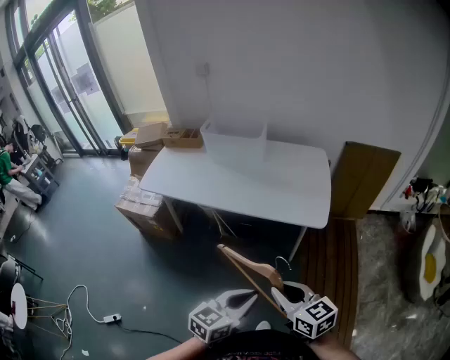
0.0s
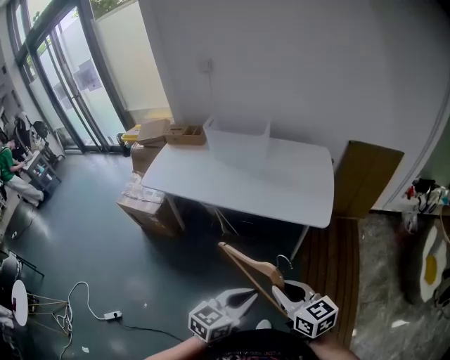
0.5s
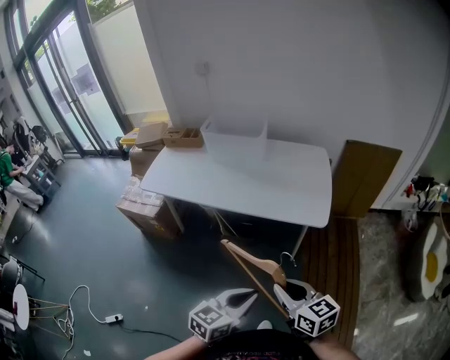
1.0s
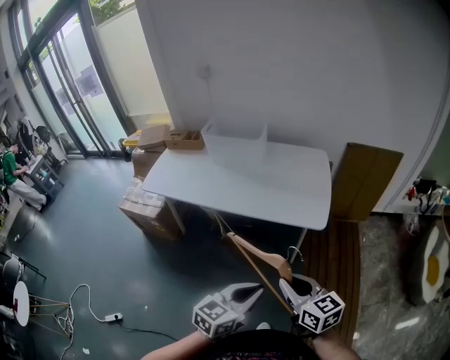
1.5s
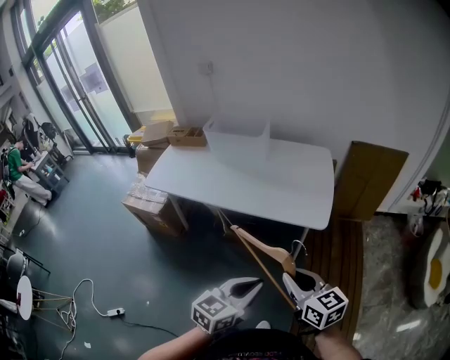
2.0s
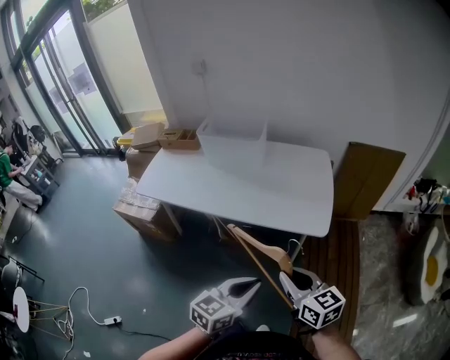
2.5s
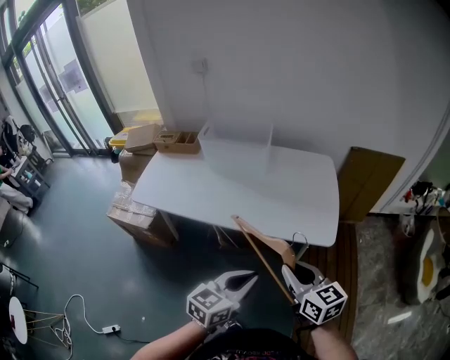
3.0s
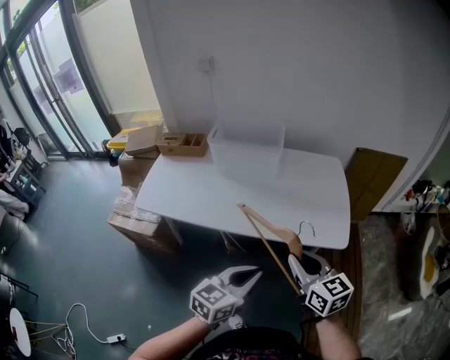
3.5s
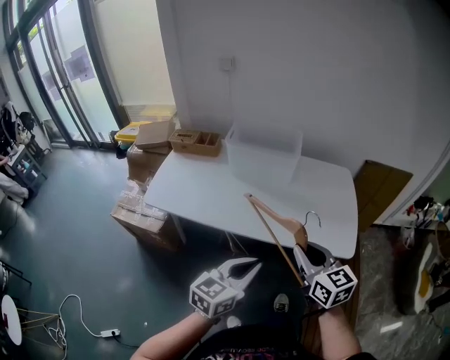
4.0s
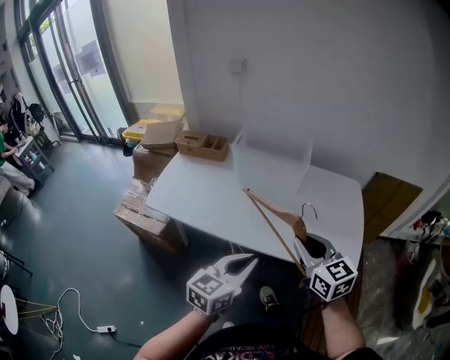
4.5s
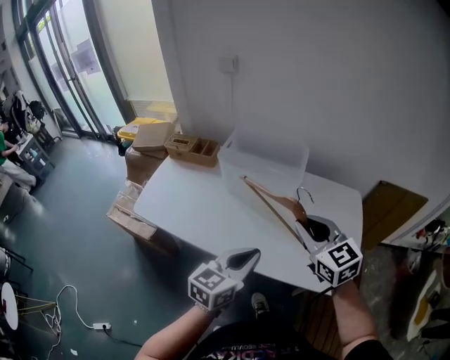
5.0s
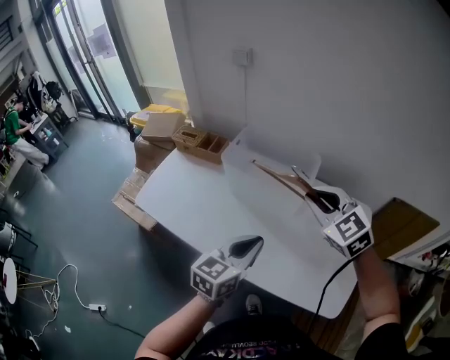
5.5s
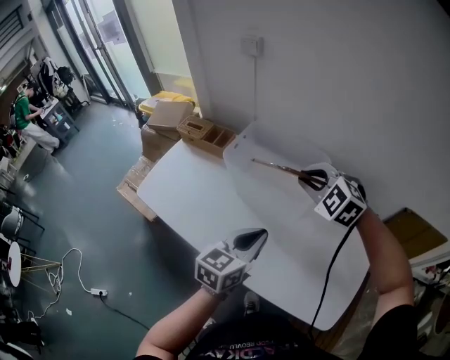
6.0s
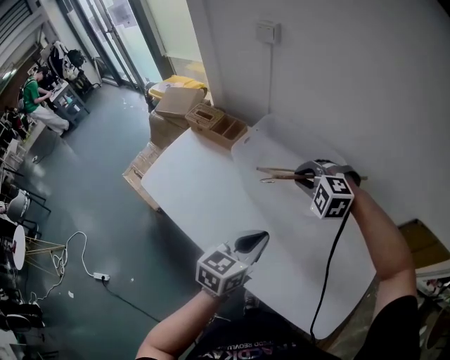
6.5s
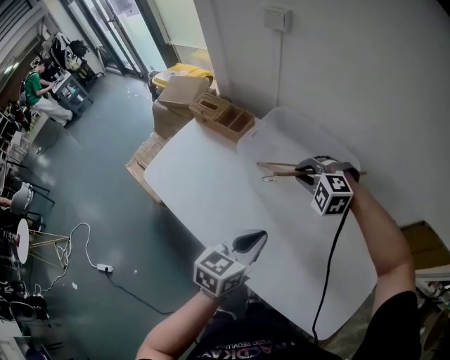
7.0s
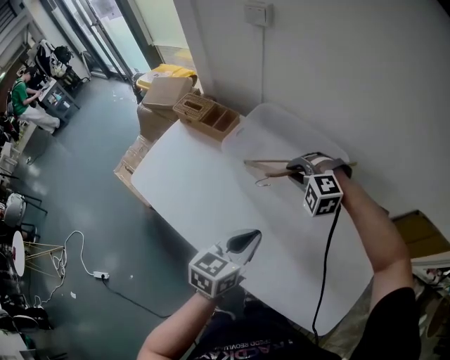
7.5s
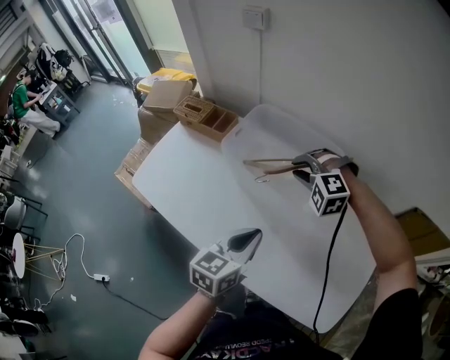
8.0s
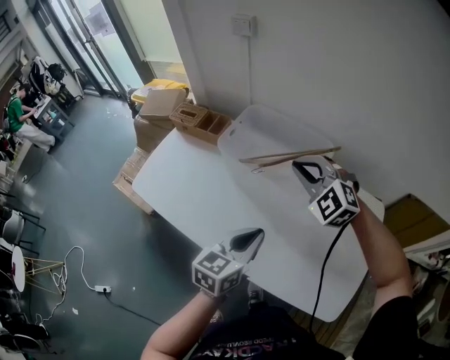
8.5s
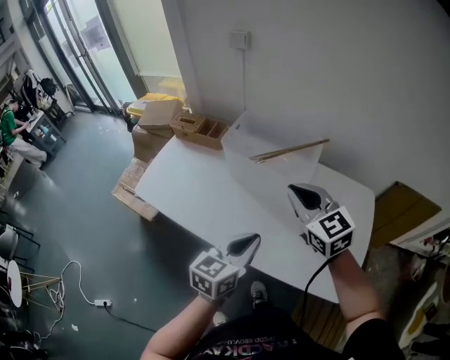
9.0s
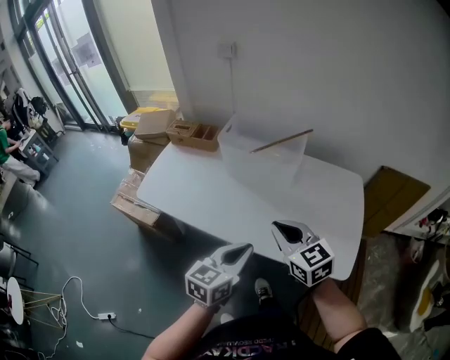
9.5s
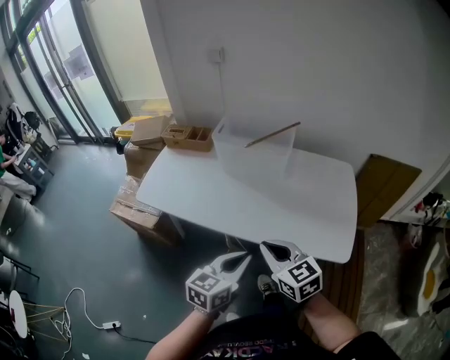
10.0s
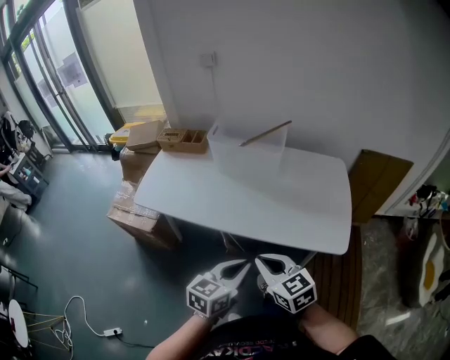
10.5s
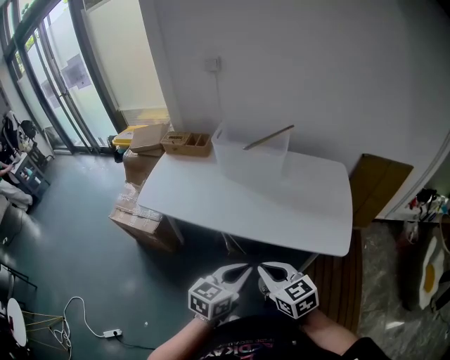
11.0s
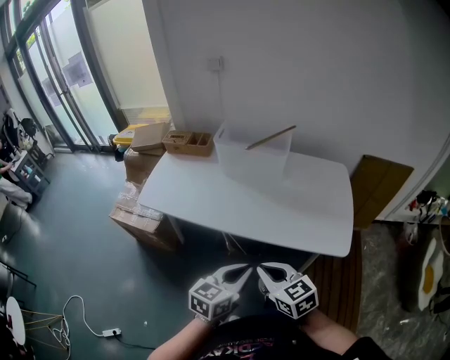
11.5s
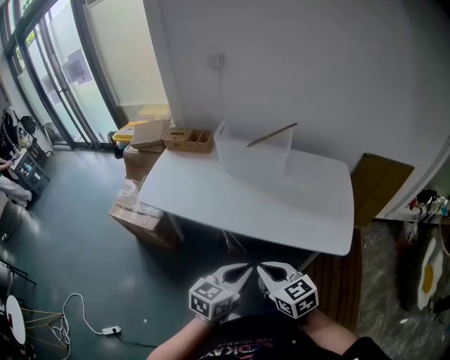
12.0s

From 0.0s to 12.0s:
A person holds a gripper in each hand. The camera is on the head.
From 0.0s to 2.0s: The right gripper goes approximately 5 cm to the right. The left gripper changes place by about 5 cm.
From 2.0s to 4.0s: Both grippers move to the left and forward, about 35 cm.
From 4.0s to 6.0s: Both grippers move forward, some 40 cm. The left gripper turns by some 20 degrees. Meanwhile the right gripper rotates around the line of its fingers by some 60 degrees, counterclockwise from behind.
From 6.0s to 8.0s: The right gripper travels downward and forward by some 15 cm, and swivels roughly 30 degrees. Meanwhile the left gripper goes approximately 5 cm downward.
From 8.0s to 10.0s: The right gripper moves backward, about 50 cm, twists about 80 degrees clockwise, seen from behind, and closes up, while the left gripper shifts roughly 35 cm backward.
From 10.0s to 12.0s: The two grippers go approximately 10 cm backward.

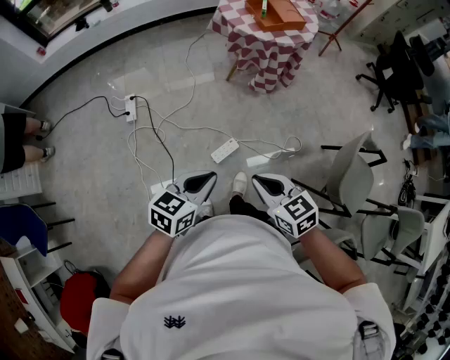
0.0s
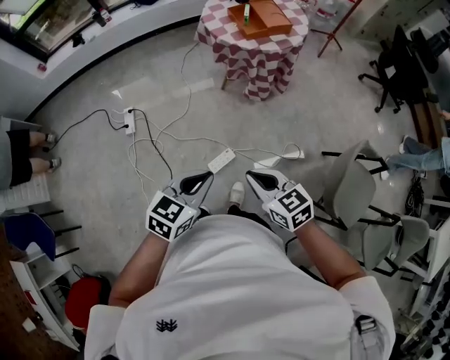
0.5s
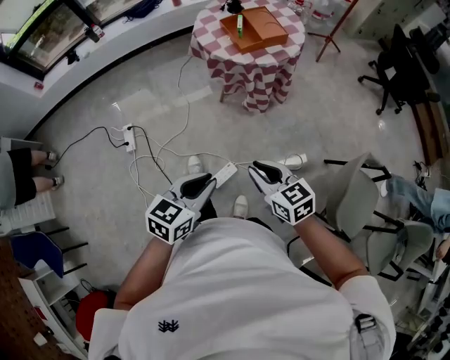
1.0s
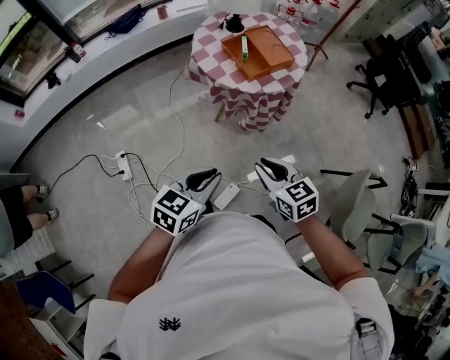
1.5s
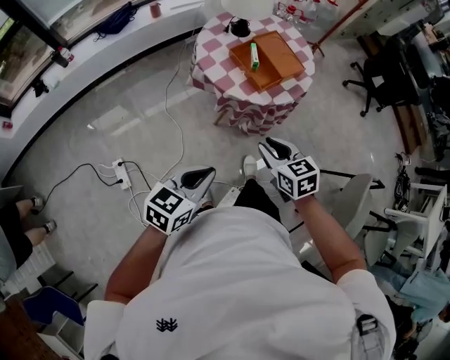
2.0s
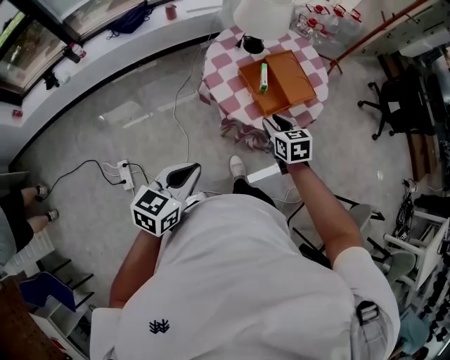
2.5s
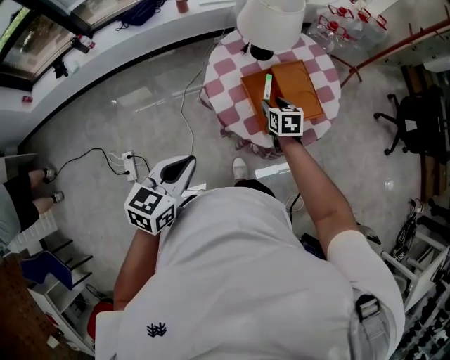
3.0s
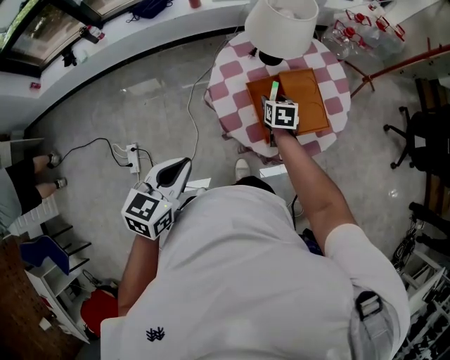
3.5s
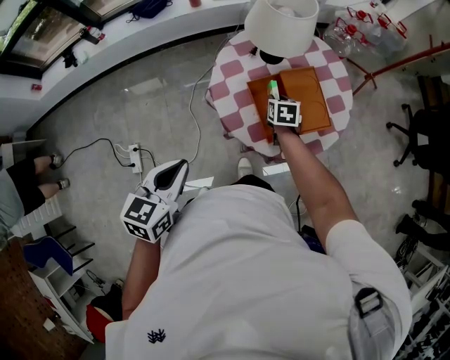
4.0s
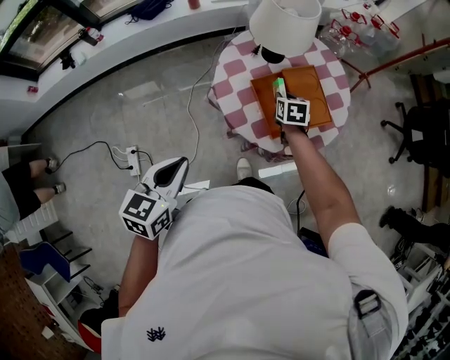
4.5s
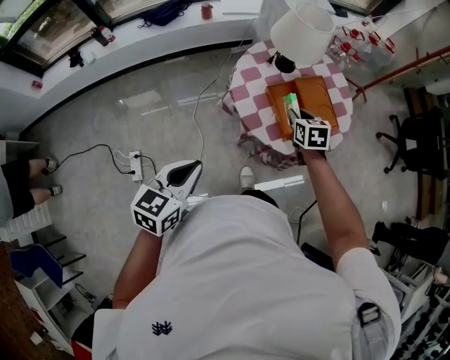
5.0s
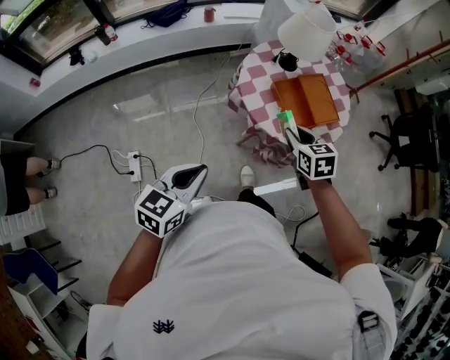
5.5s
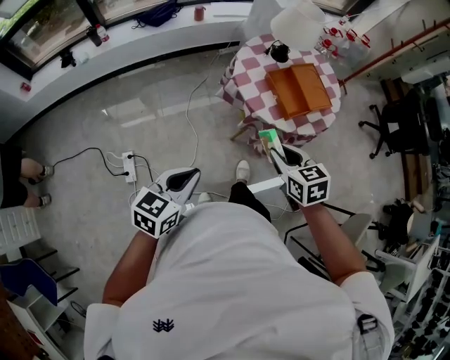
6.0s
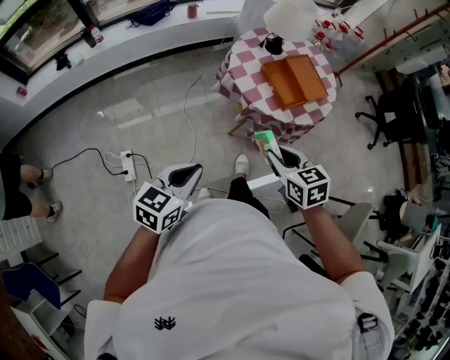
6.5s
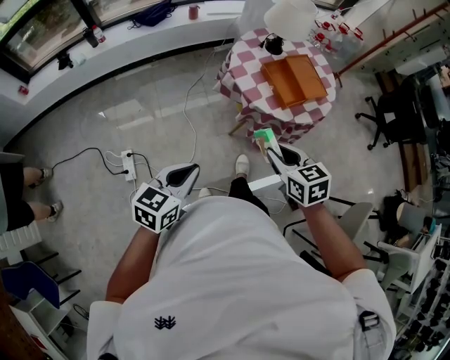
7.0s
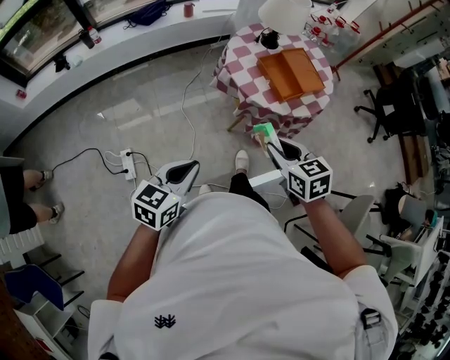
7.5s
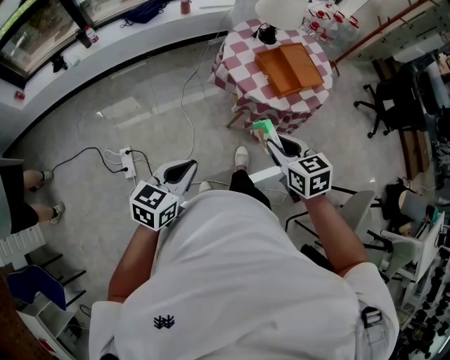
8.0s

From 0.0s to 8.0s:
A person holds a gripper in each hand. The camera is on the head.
From 0.0s to 2.0s: Both grippers are carried forward, approximately 50 cm. The right gripper changes its angle by about 20 degrees.
From 2.0s to 4.0s: The left gripper moves forward, approximately 20 cm, and turns by approximately 30 degrees. The right gripper shifts some 50 cm forward and downward, and opens, then closes once more.
From 4.0s to 6.0s: The right gripper goes roughly 40 cm backward and upward. The left gripper is displaced backward and to the left by roughly 25 cm.
From 6.0s to 8.0s: The right gripper is displaced backward by approximately 5 cm.

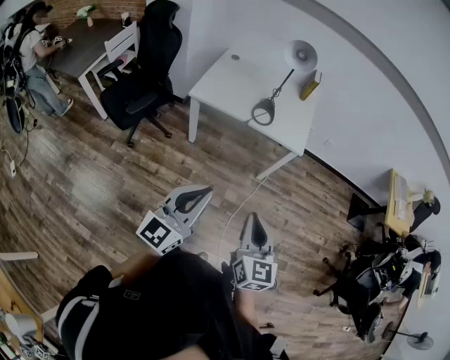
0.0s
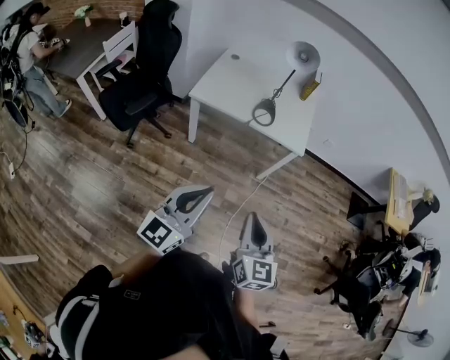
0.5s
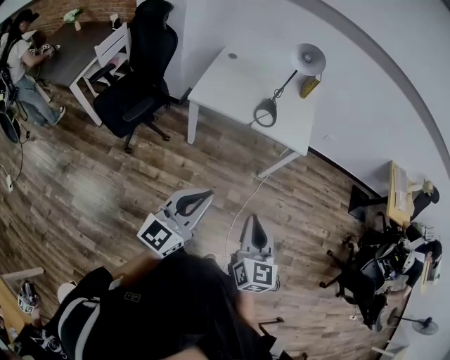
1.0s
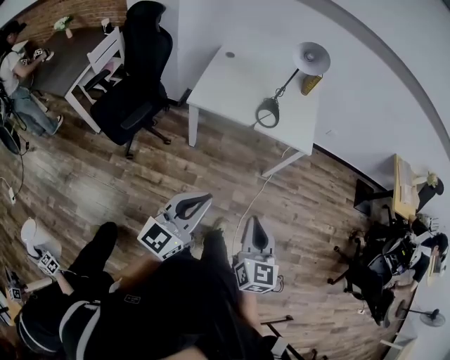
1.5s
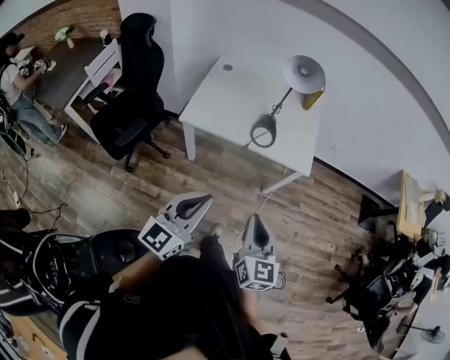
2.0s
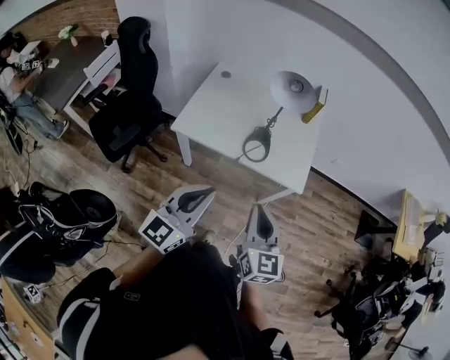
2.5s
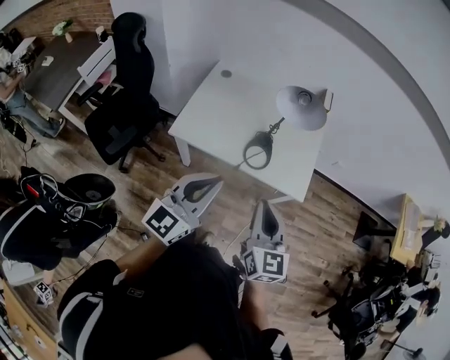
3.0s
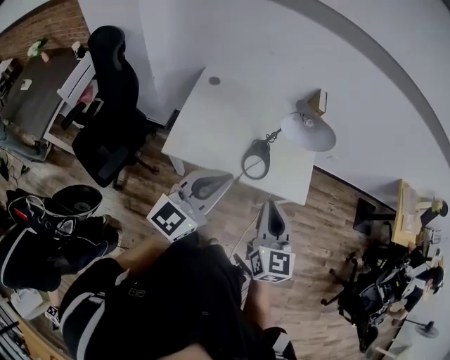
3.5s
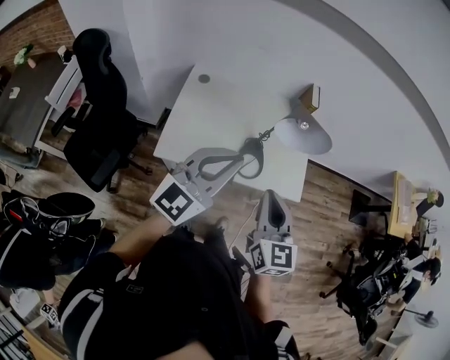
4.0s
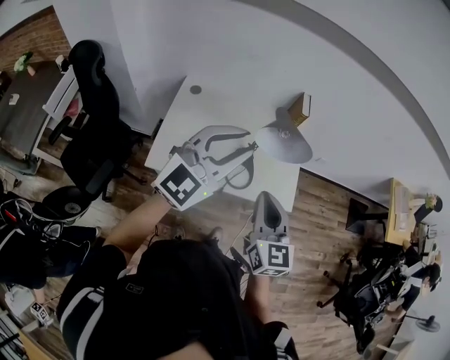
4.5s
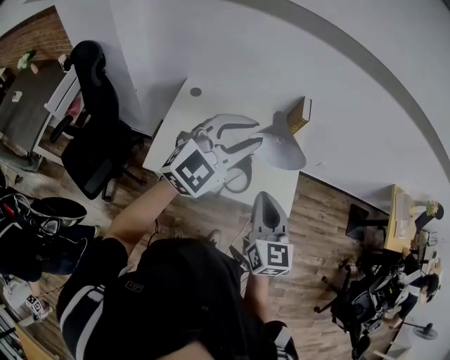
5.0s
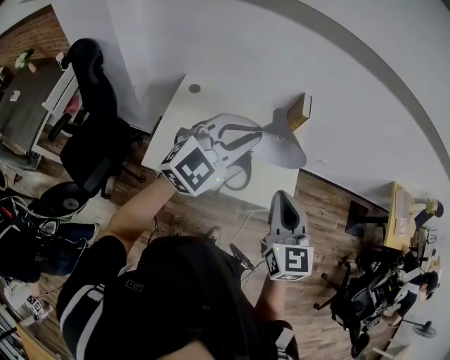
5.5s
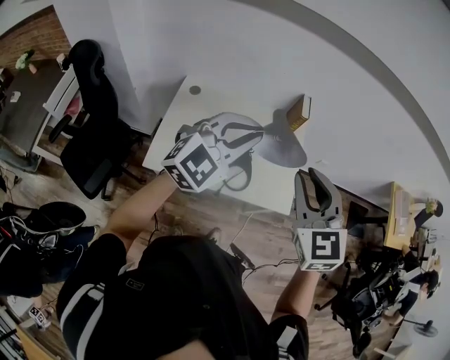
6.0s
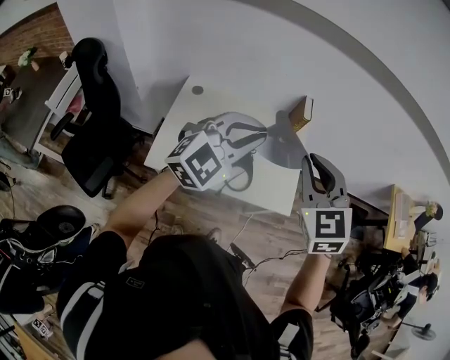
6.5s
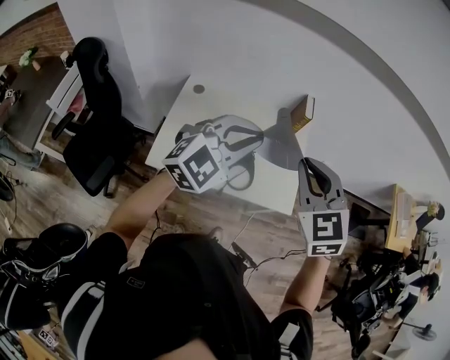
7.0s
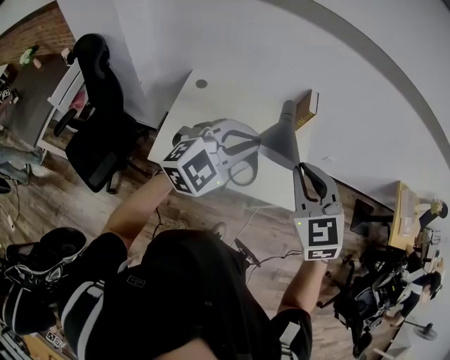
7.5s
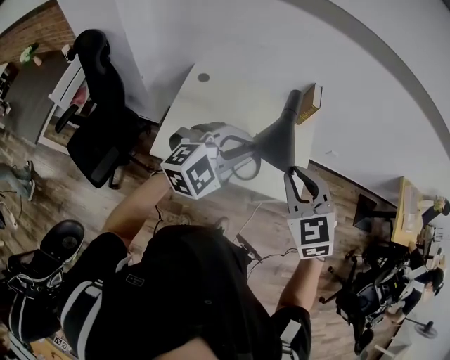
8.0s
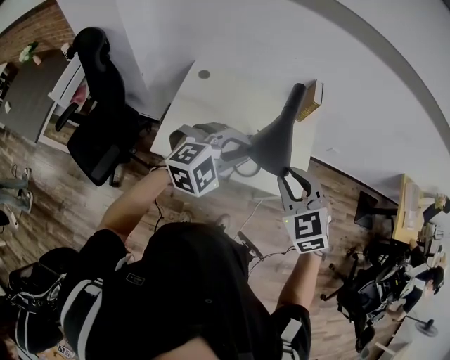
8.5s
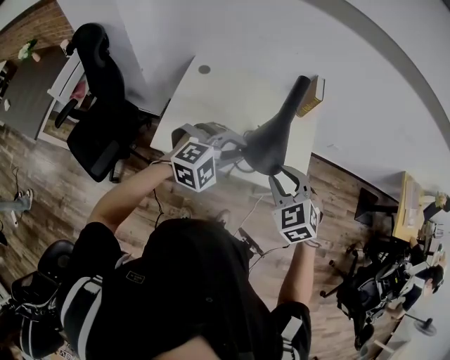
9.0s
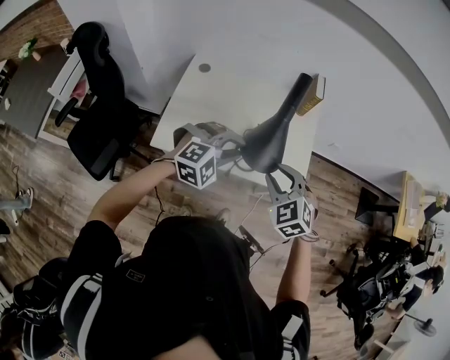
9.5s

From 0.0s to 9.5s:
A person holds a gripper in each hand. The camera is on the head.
From 0.0s to 2.0s: Both grippers move forward, about 20 cm.
From 2.0s to 4.0s: Both grippers travel together forward, approximately 30 cm.
From 4.0s to 5.5s: The right gripper moves forward, roughly 5 cm, while the left gripper goes about 10 cm forward, and turns by roughly 20 degrees.
From 5.5s to 7.5s: The right gripper rotates approximately 30 degrees.
From 7.5s to 9.5s: The grippers both shift downward by some 15 cm. The left gripper swivels approximately 30 degrees; the right gripper opens up.
